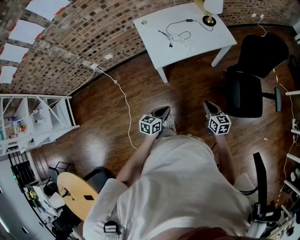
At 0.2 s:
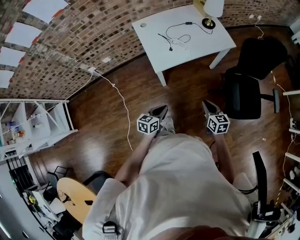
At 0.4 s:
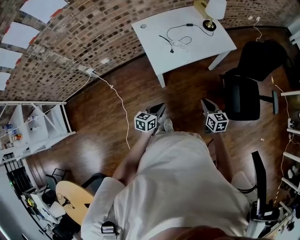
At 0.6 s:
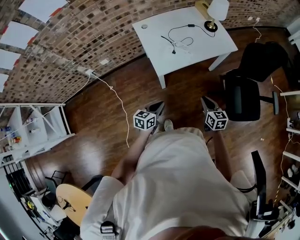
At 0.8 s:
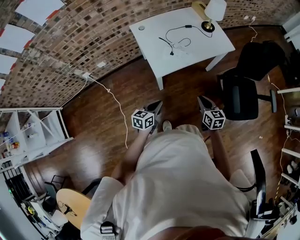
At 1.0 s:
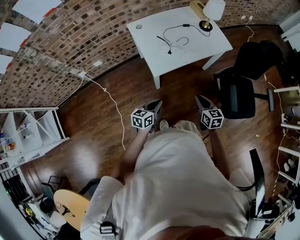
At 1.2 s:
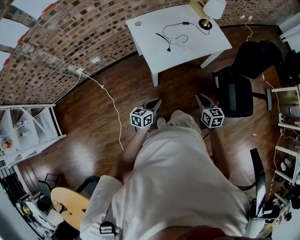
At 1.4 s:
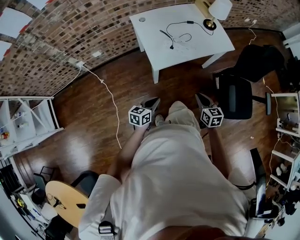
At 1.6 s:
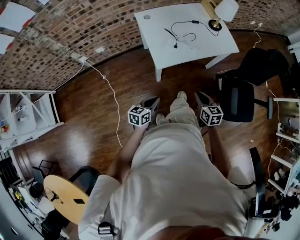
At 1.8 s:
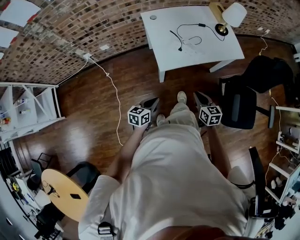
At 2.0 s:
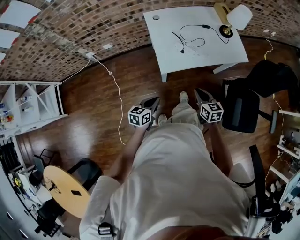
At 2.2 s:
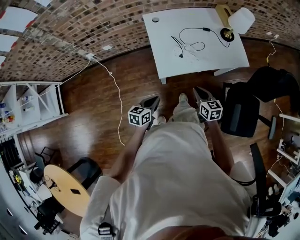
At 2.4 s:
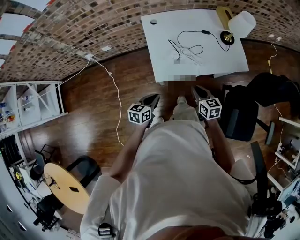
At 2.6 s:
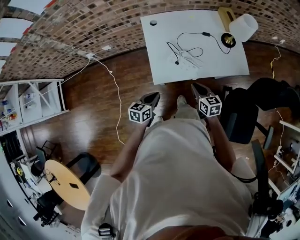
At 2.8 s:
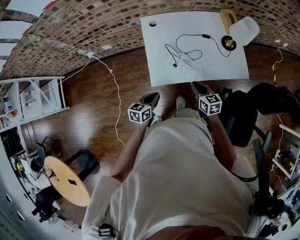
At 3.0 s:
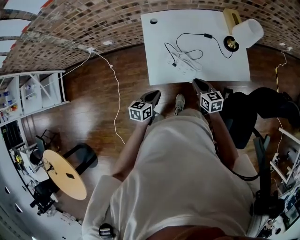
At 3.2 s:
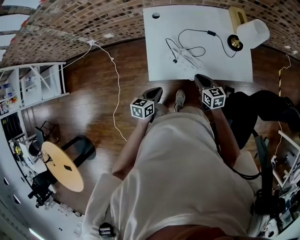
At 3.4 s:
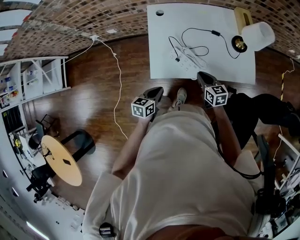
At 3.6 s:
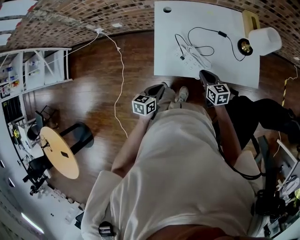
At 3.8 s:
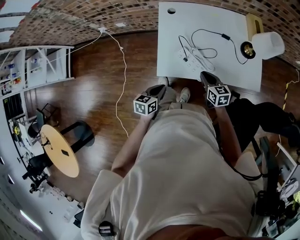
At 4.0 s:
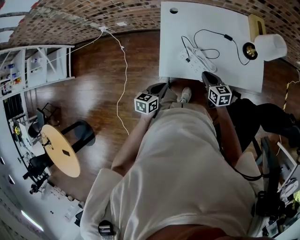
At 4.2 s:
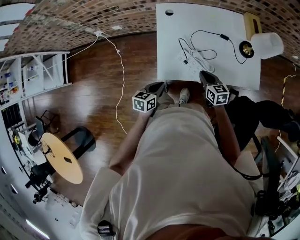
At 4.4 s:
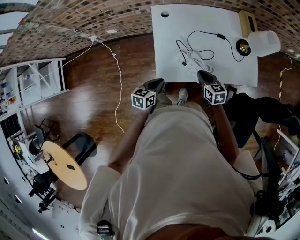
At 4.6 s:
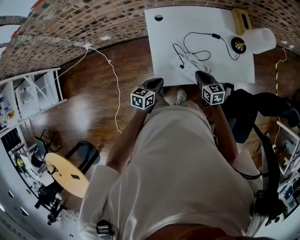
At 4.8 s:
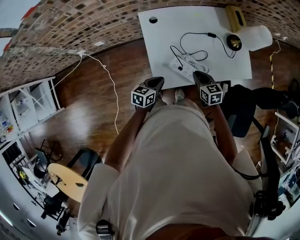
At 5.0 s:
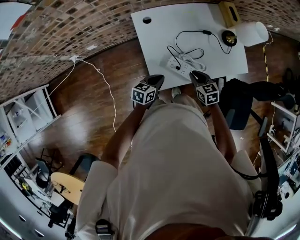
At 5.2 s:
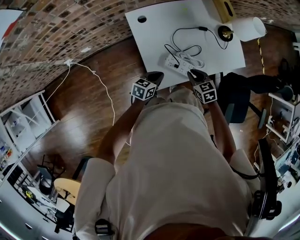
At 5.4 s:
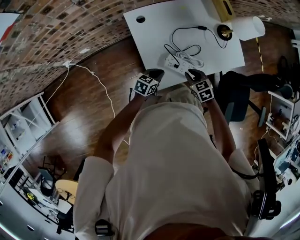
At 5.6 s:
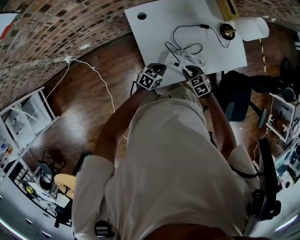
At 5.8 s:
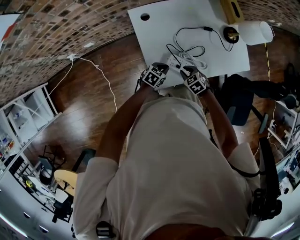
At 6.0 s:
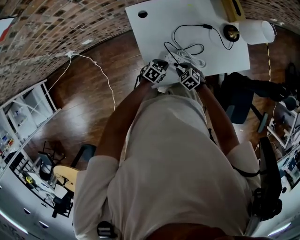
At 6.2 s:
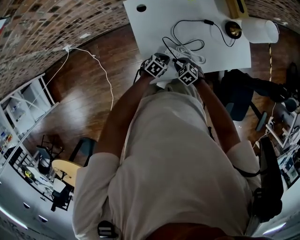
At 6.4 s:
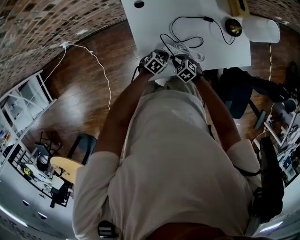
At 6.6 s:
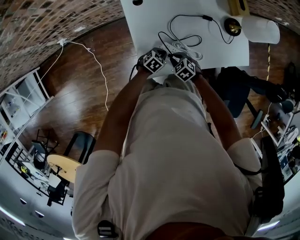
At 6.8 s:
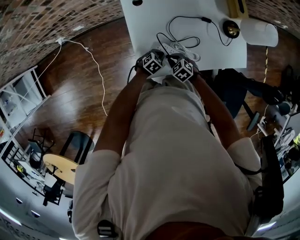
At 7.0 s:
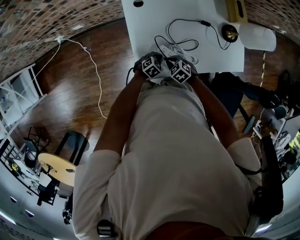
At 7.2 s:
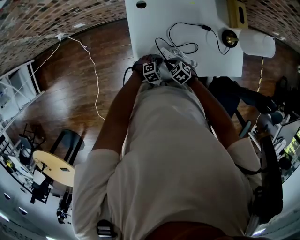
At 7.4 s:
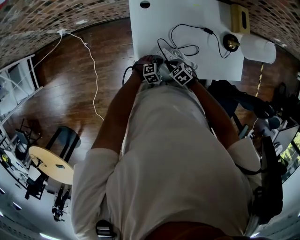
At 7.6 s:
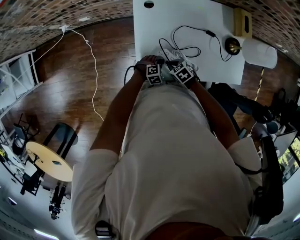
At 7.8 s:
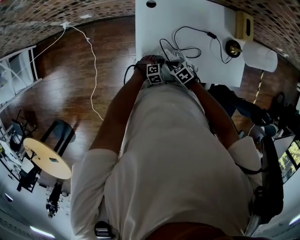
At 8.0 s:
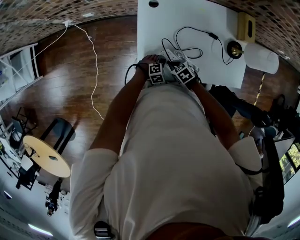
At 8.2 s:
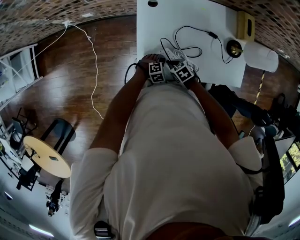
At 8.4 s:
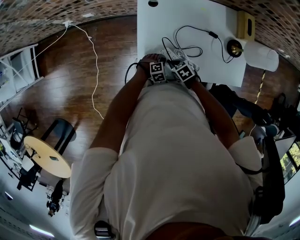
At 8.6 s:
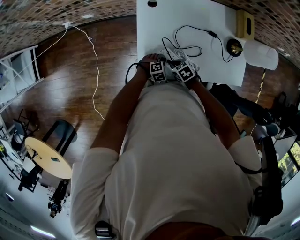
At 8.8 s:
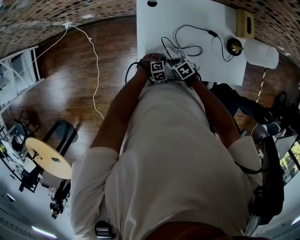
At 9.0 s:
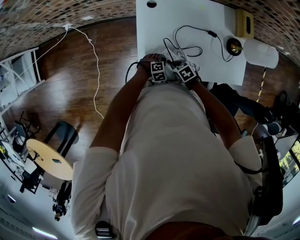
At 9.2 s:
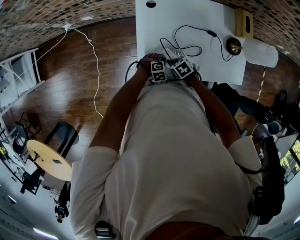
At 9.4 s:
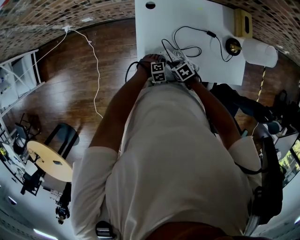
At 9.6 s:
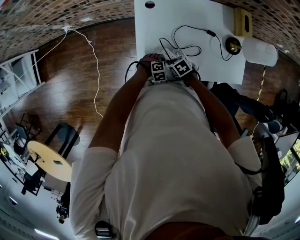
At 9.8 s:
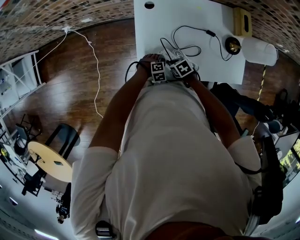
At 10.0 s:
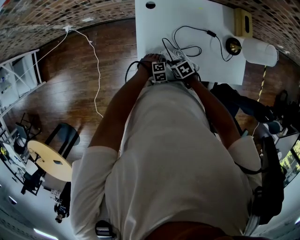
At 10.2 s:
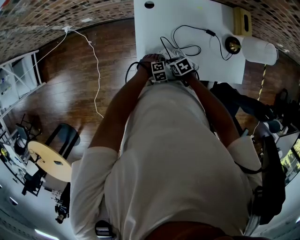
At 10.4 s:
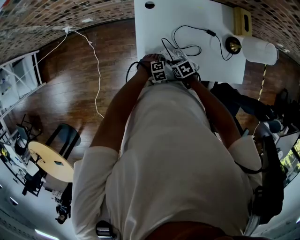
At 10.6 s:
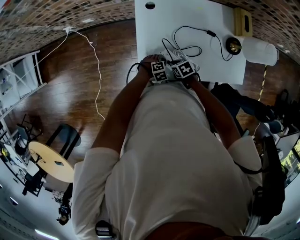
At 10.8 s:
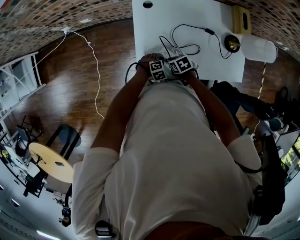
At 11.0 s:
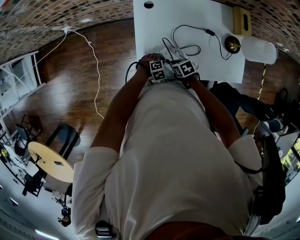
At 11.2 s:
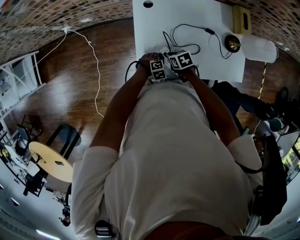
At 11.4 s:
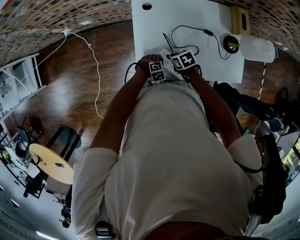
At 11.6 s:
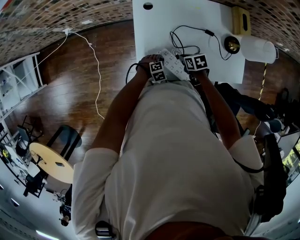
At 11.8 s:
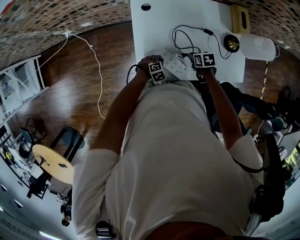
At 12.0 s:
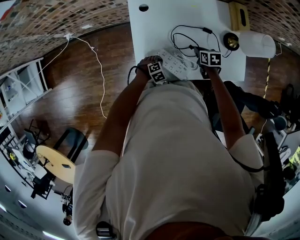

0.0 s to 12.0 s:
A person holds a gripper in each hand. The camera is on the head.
0.0 to 1.6 s: Both grippers travel together to the left and forward, about 15 cm.
1.6 to 3.0 s: The right gripper moves forward, some 25 cm, and swivels some 20 degrees; the left gripper is displaced forward and to the right by some 20 cm.
3.0 to 4.4 s: The grippers both shift forward by some 5 cm.
4.4 to 6.0 s: The grippers both shift downward by some 15 cm. The right gripper rotates roughly 40 degrees. Meanwhile the left gripper changes its angle by approximately 40 degrees.
6.0 to 7.6 s: The left gripper heads downward, covering approximately 5 cm, and changes its angle by approximately 40 degrees.
7.6 to 10.4 s: The grippers make only small movements.
10.4 to 12.0 s: The right gripper ends up roughly 20 cm from where it was, and changes its angle by approximately 30 degrees.

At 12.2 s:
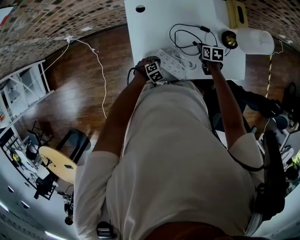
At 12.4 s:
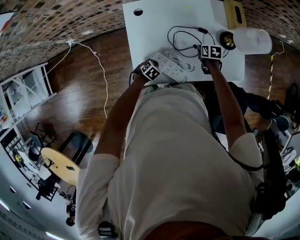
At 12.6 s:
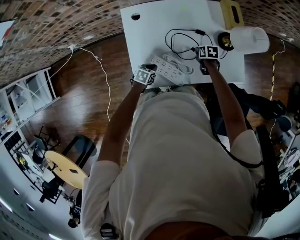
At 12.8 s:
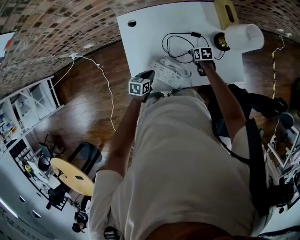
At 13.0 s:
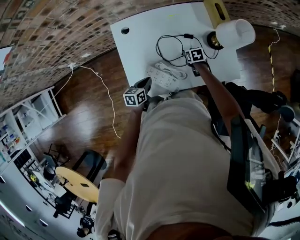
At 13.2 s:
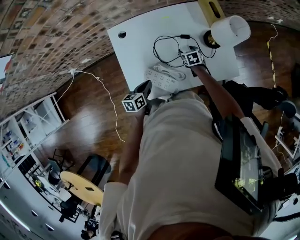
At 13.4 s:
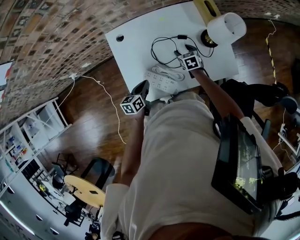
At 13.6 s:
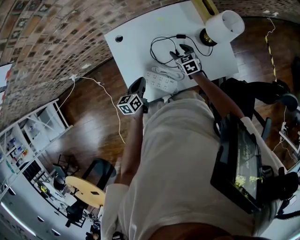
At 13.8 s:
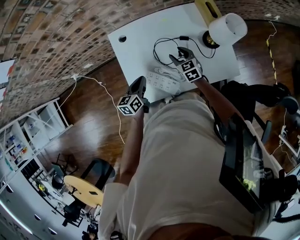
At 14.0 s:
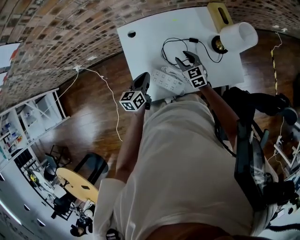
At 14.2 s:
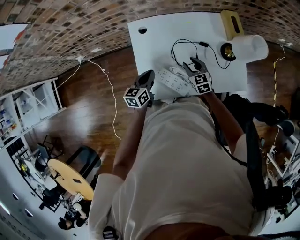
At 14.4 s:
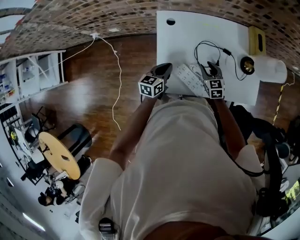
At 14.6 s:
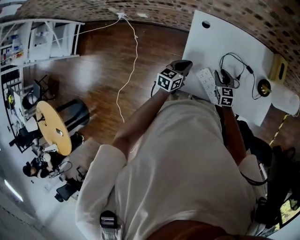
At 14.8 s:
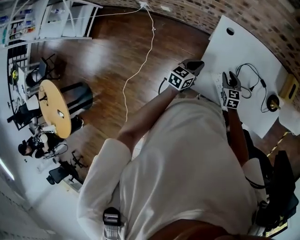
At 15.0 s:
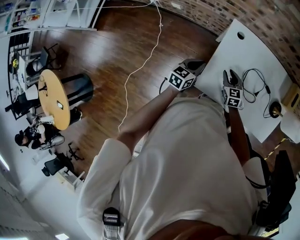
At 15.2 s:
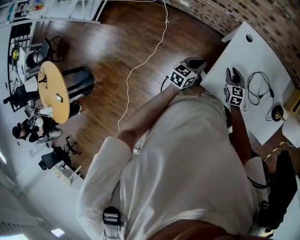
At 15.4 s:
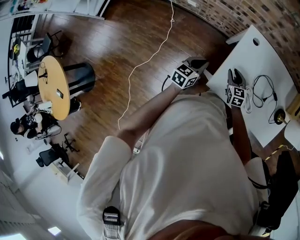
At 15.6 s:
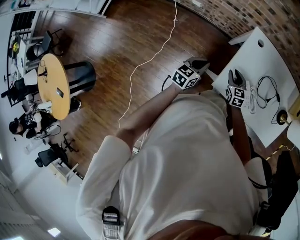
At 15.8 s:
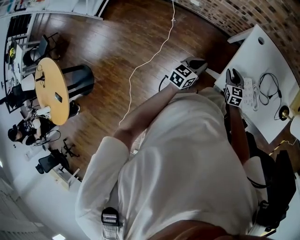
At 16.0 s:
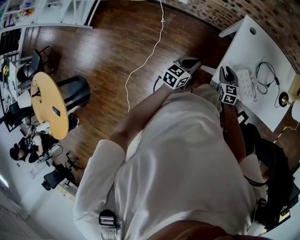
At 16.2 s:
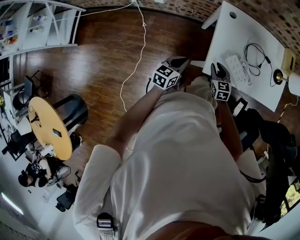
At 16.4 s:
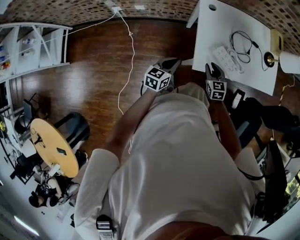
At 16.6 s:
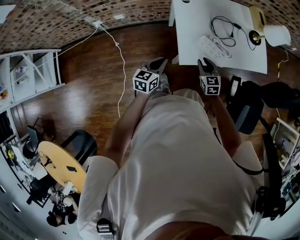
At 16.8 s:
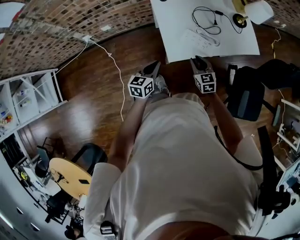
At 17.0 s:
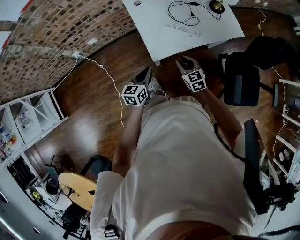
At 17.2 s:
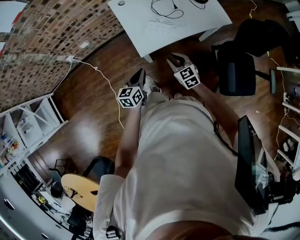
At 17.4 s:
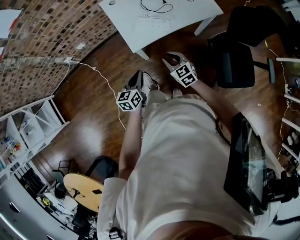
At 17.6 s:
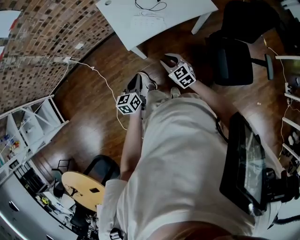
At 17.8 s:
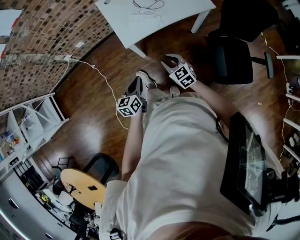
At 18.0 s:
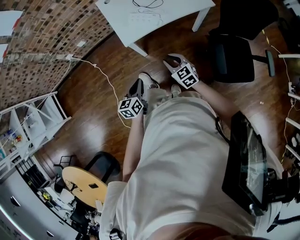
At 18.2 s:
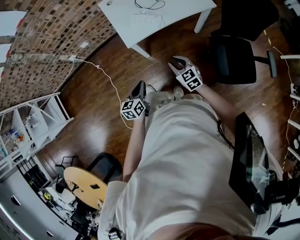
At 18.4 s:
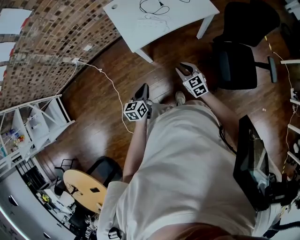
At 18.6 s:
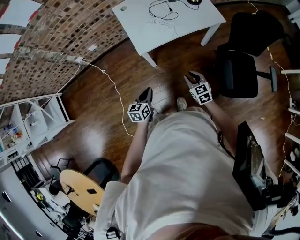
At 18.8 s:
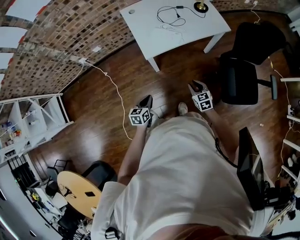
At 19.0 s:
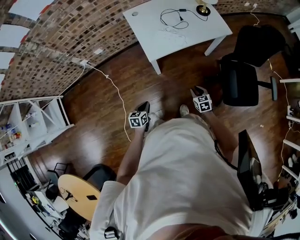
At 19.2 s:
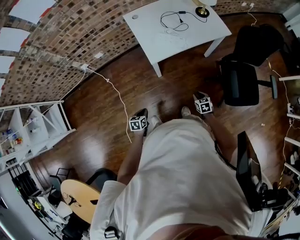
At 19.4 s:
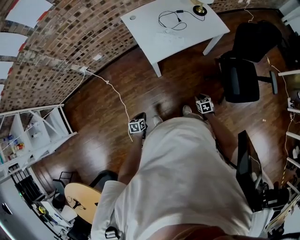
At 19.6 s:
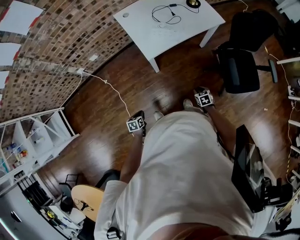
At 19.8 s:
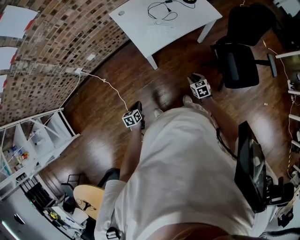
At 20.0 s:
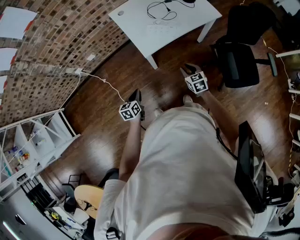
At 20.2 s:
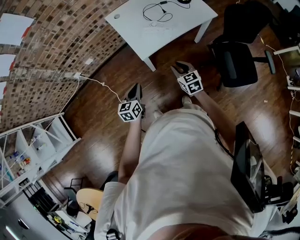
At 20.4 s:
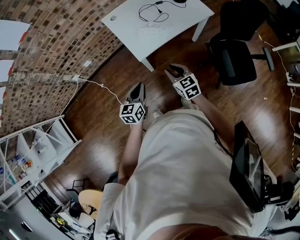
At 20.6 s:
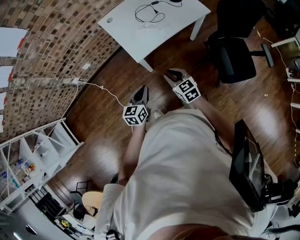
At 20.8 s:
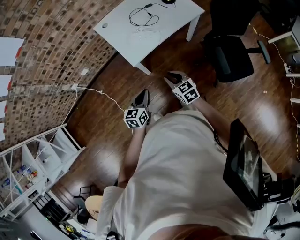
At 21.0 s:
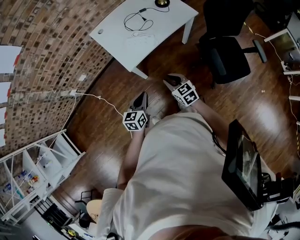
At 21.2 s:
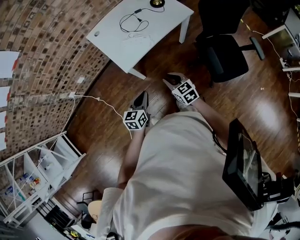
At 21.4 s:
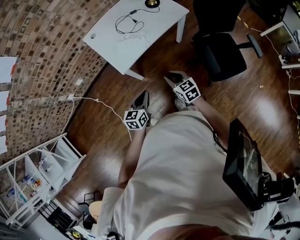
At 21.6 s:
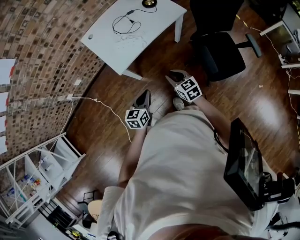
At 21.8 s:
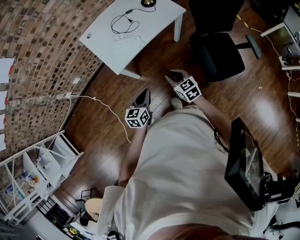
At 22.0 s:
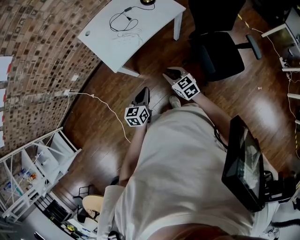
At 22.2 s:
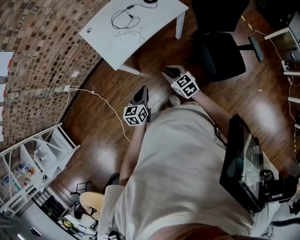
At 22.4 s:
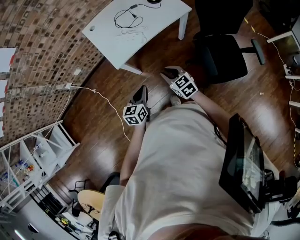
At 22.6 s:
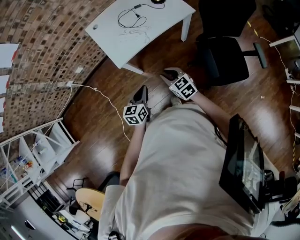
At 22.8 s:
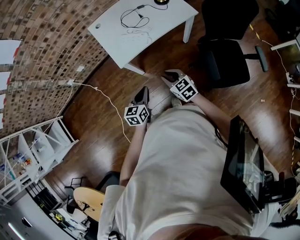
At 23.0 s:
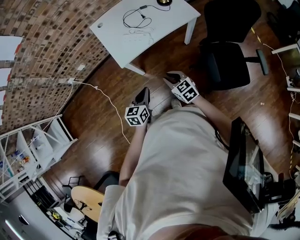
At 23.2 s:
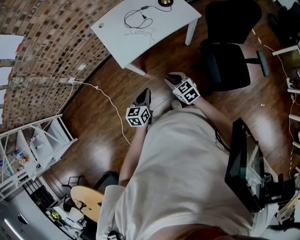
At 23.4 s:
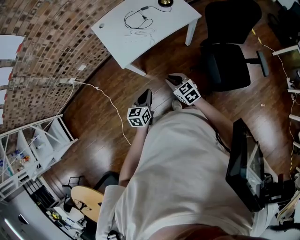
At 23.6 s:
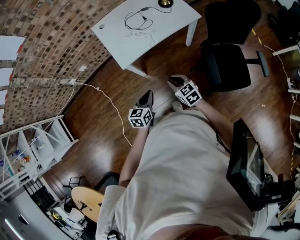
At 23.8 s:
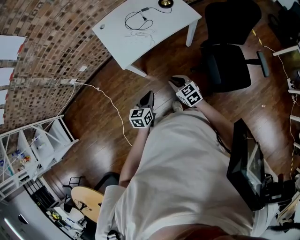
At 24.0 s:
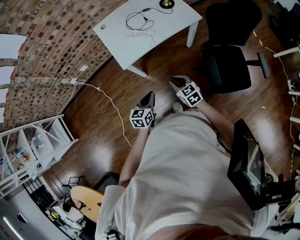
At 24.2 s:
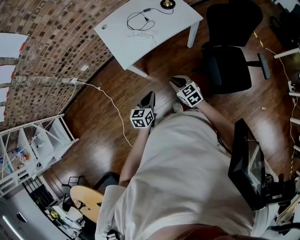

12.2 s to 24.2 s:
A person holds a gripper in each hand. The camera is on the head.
12.2 to 13.8 s: The right gripper shifts approximately 10 cm upward, swivels some 40 degrees, and opens its fingers. The left gripper moves upward, about 20 cm, and points its fingers about 40 degrees further upward.
13.8 to 15.2 s: Both grippers move to the left, some 30 cm. The right gripper rotates approximately 20 degrees, and closes its fingers.
15.2 to 16.6 s: The grippers both shift backward by roughly 15 cm. The right gripper turns by approximately 30 degrees, while the left gripper swivels roughly 20 degrees.
16.6 to 18.2 s: Both grippers travel together backward and to the right, some 35 cm.
18.2 to 19.8 s: The left gripper shifts roughly 25 cm to the left and downward, and swivels about 20 degrees; the right gripper moves downward, roughly 10 cm, and turns by about 30 degrees.
19.8 to 21.2 s: The left gripper travels to the right and upward by approximately 30 cm, and swivels some 30 degrees; the right gripper moves upward, some 15 cm.
21.2 to 22.6 s: The grippers both shift to the right by roughly 5 cm.
22.6 to 24.2 s: The grippers stay close to where they were, moving slightly.
